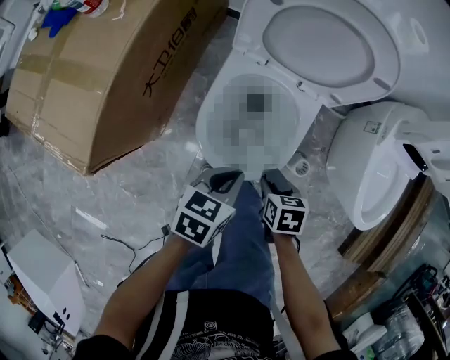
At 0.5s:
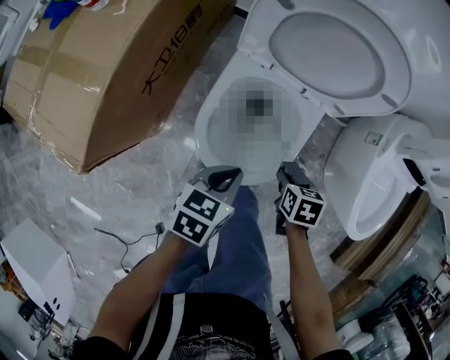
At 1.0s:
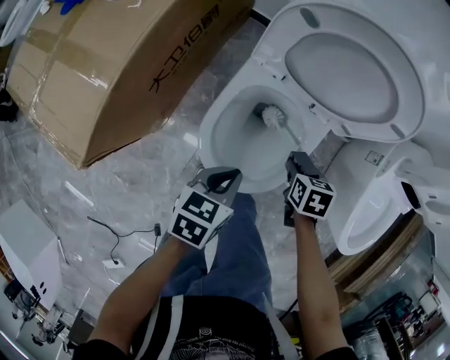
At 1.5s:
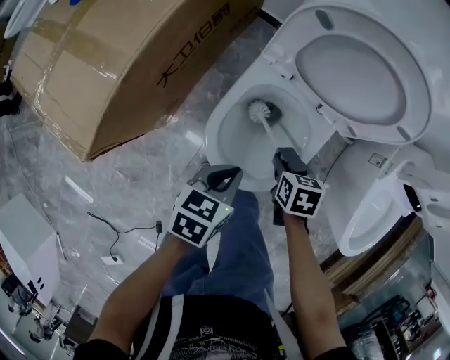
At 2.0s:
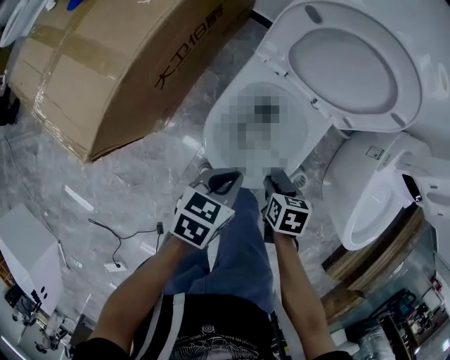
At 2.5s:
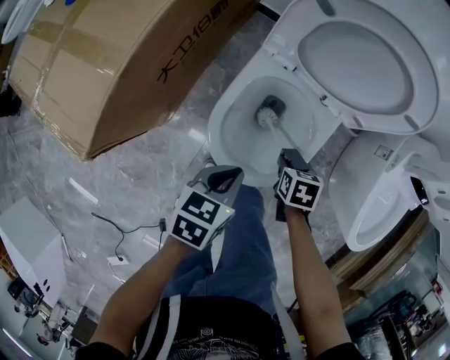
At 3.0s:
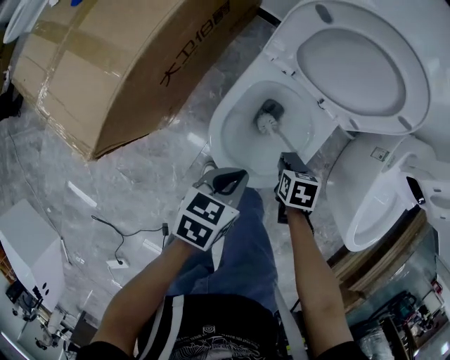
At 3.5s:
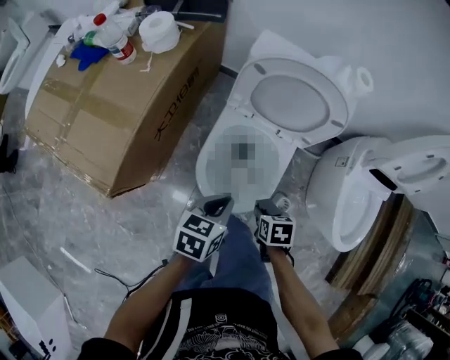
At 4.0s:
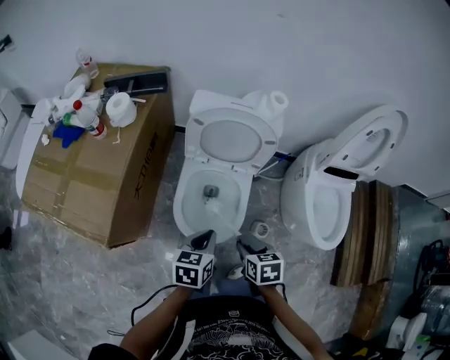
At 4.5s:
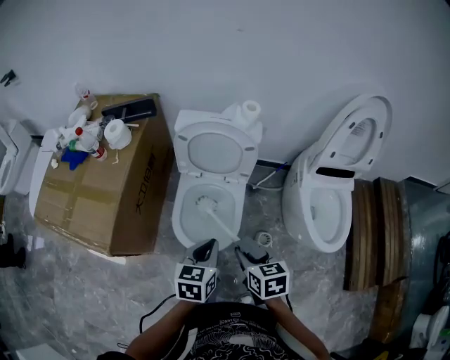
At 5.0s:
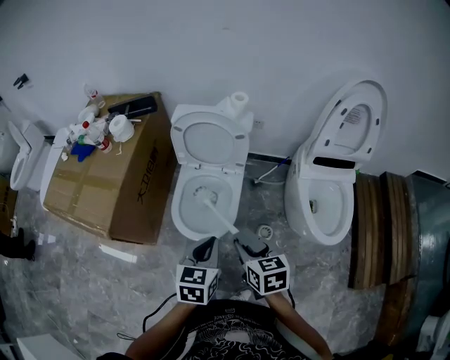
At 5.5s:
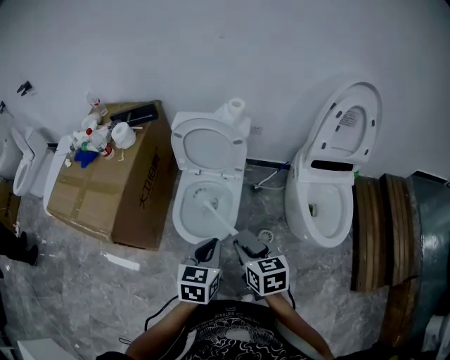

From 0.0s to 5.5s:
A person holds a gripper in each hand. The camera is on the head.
From 0.0s to 2.0s: The right gripper travels forward and back again, about 15 cm each way.
From 2.0s to 3.5s: Both grippers travel together upward, some 5 cm.
From 3.5s to 5.5s: The right gripper goes about 25 cm upward, and points its fingers about 40 degrees further upward; the left gripper is displaced upward, to the right and backward by approximately 25 cm, and changes its angle by approximately 20 degrees.

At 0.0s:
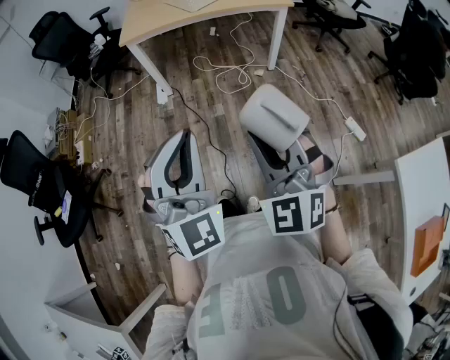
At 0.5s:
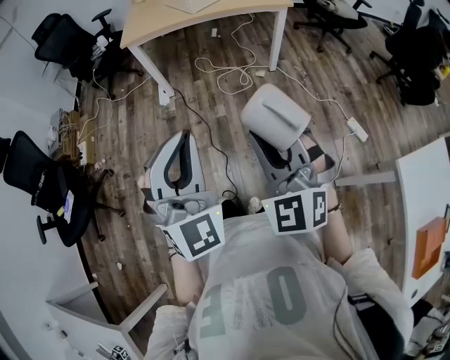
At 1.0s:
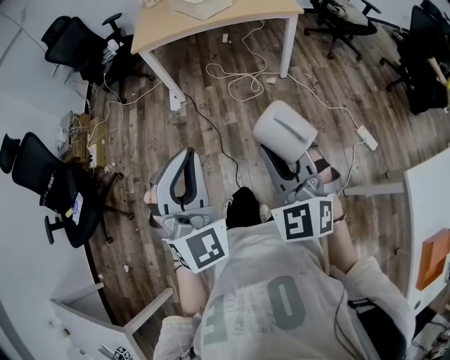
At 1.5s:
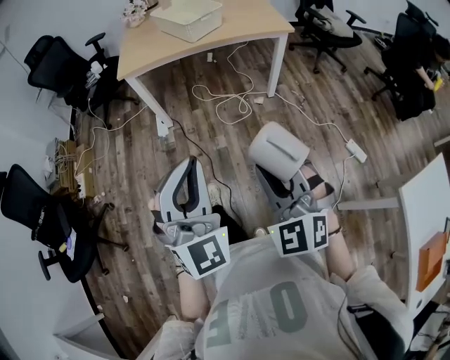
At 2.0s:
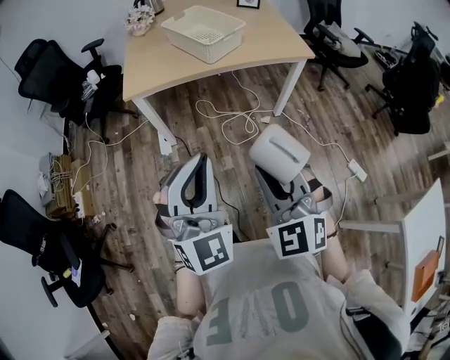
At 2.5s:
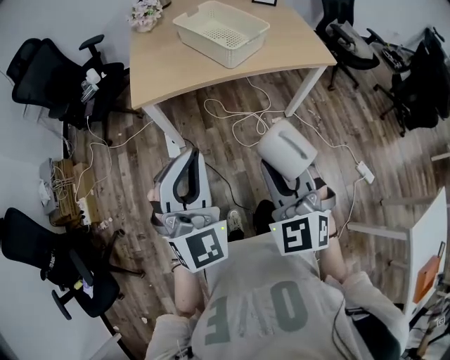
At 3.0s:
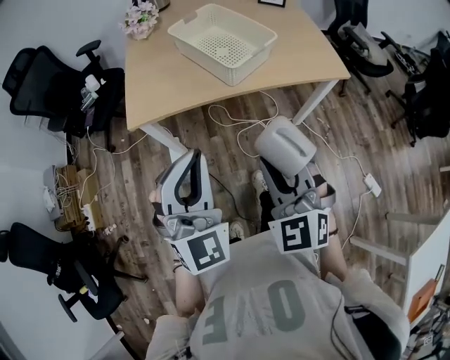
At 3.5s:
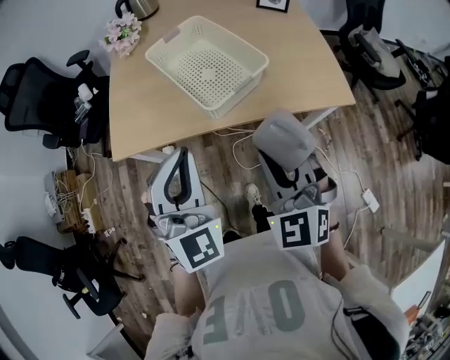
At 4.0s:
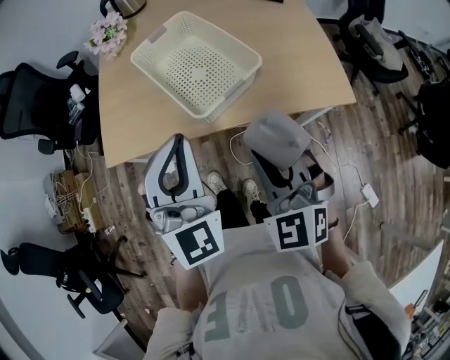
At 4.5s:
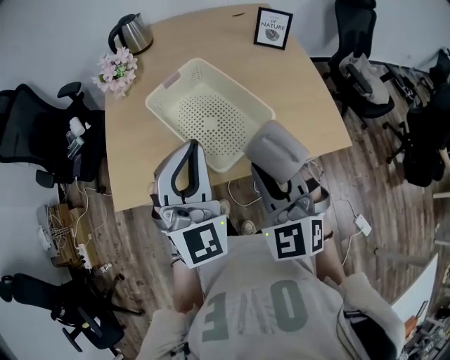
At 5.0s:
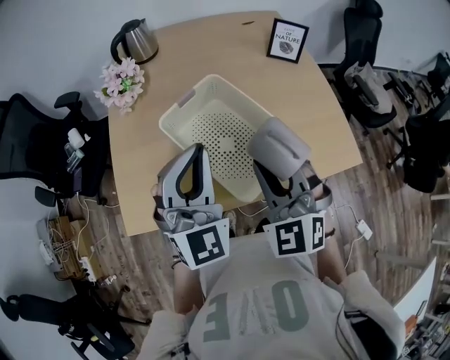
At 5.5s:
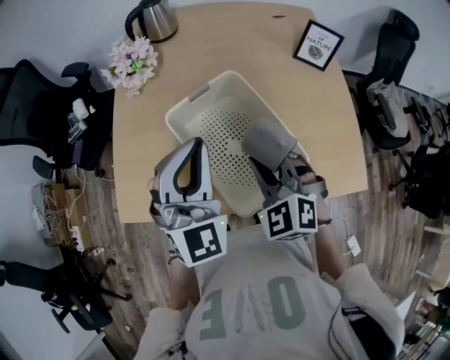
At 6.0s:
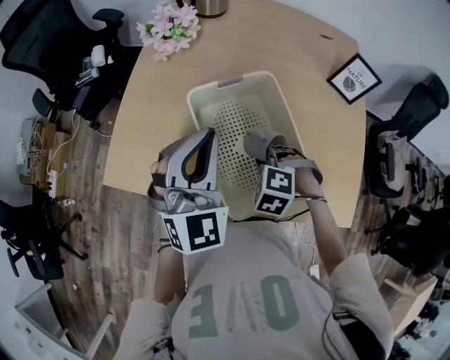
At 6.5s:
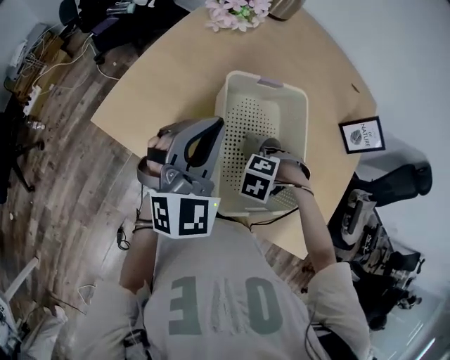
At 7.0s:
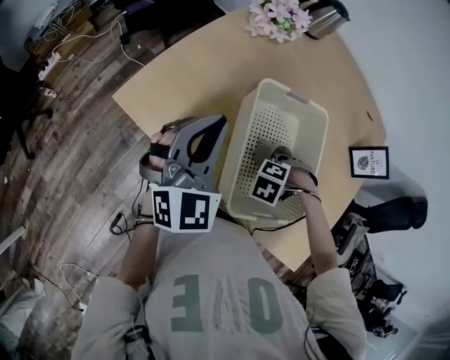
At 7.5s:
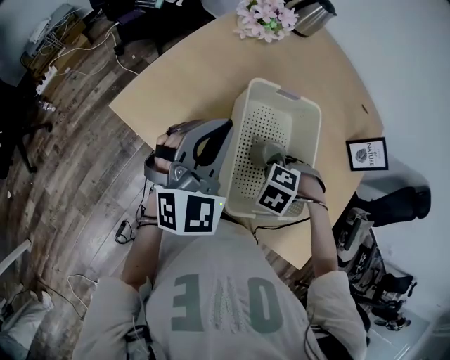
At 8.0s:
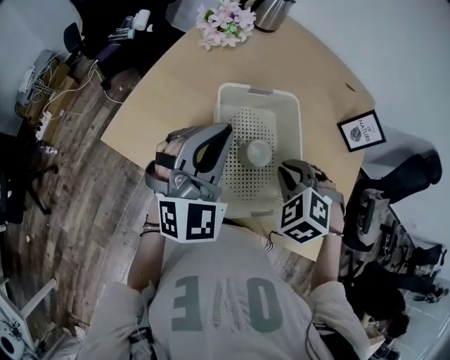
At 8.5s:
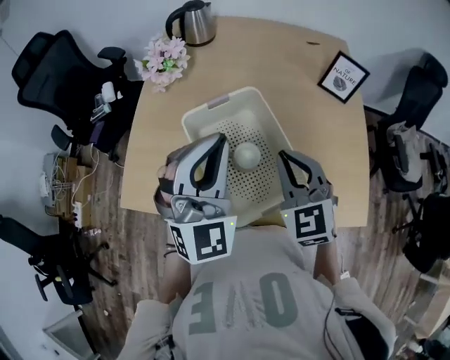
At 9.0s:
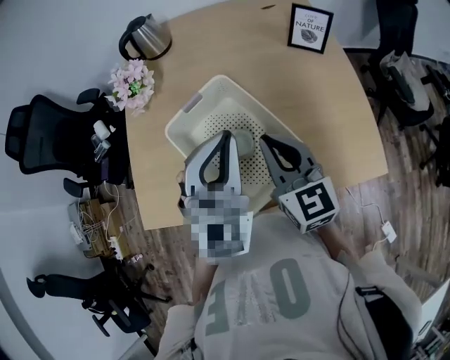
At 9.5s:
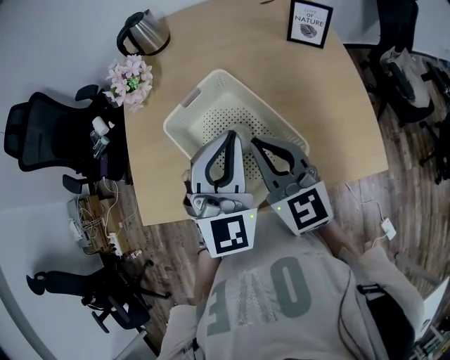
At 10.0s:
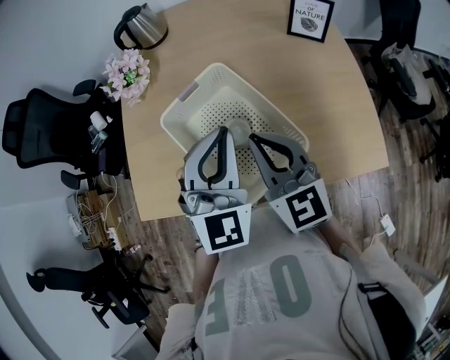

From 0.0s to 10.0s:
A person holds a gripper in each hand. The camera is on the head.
From 0.0s to 2.0s: The grippers both shift forward by about 30 cm.
From 2.0s to 4.0s: The pair of grippers is taken forward, roughly 50 cm.
From 4.0s to 6.0s: The left gripper is displaced forward by roughly 25 cm. The right gripper travels forward and downward by about 35 cm, and tips its fingers downward by approximately 50 degrees.
From 6.0s to 8.0s: The right gripper heads upward, covering approximately 10 cm.
From 8.0s to 10.0s: The right gripper goes some 10 cm upward, and tilts its fingers about 50 degrees upward; the left gripper travels to the right by roughly 15 cm, and rotates approximately 20 degrees.

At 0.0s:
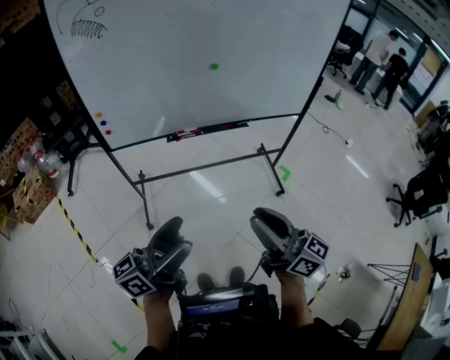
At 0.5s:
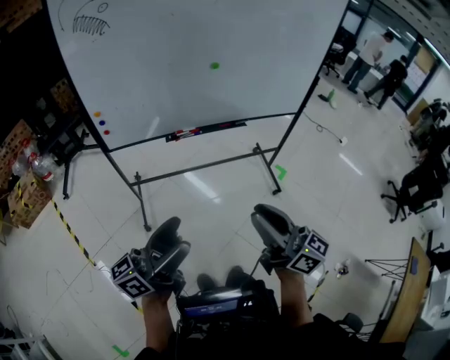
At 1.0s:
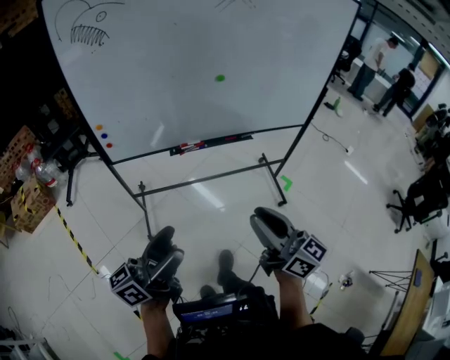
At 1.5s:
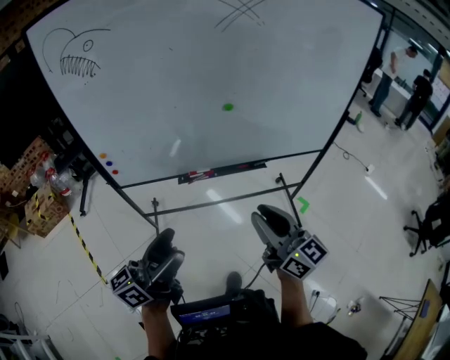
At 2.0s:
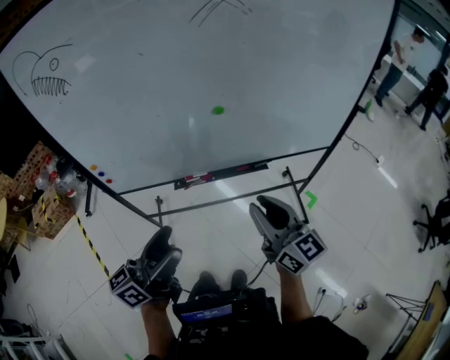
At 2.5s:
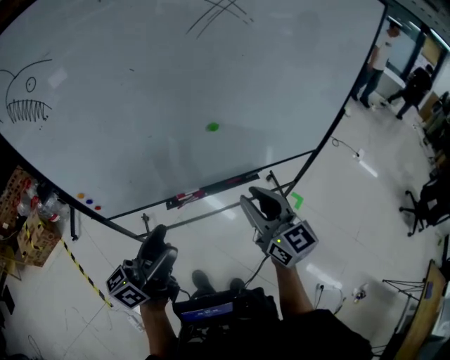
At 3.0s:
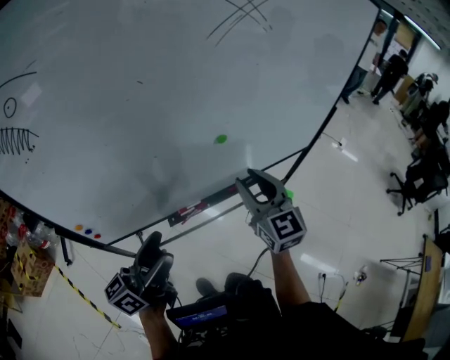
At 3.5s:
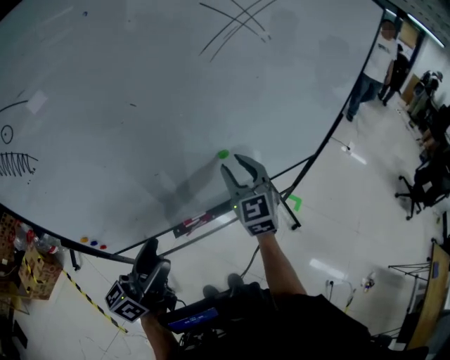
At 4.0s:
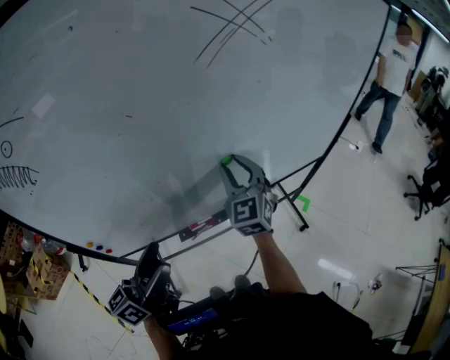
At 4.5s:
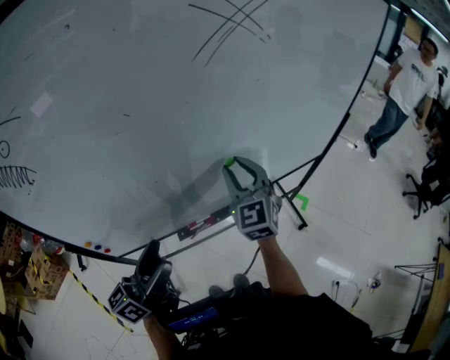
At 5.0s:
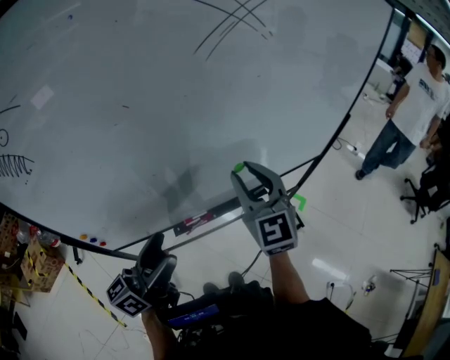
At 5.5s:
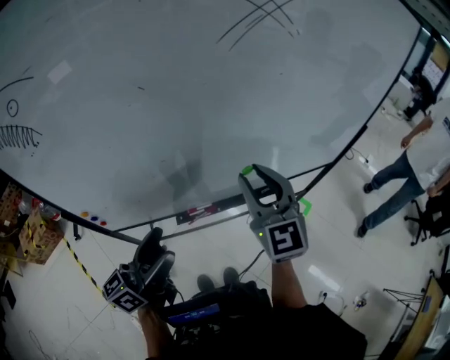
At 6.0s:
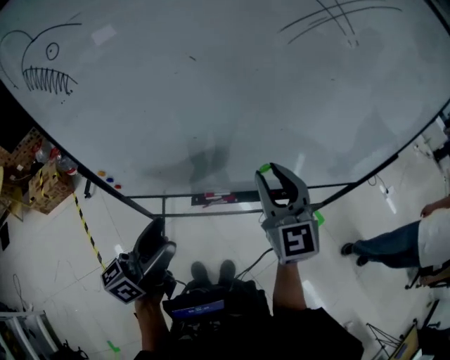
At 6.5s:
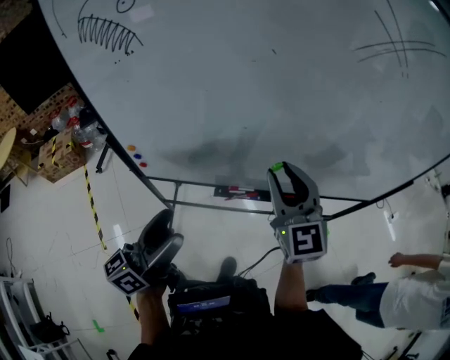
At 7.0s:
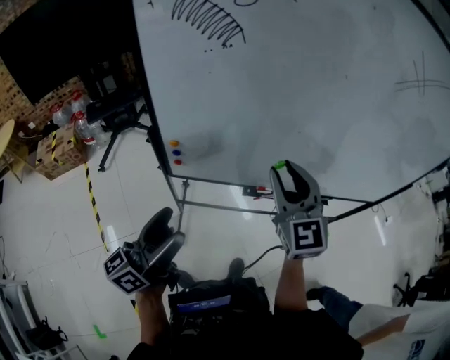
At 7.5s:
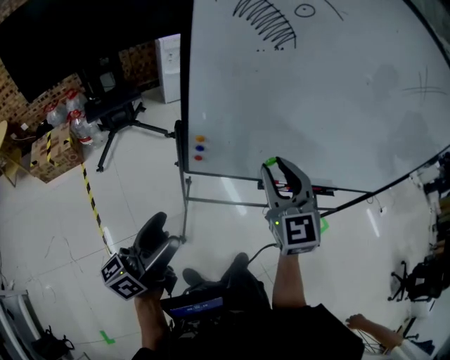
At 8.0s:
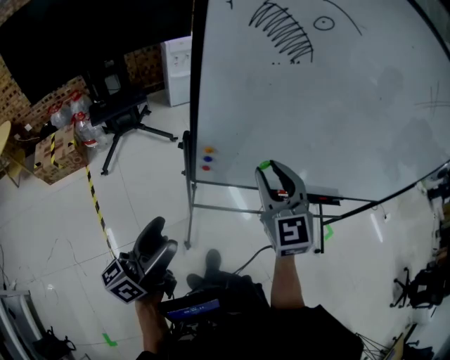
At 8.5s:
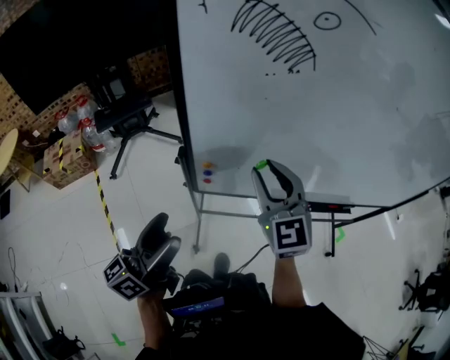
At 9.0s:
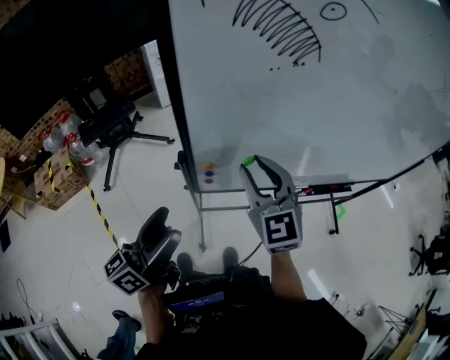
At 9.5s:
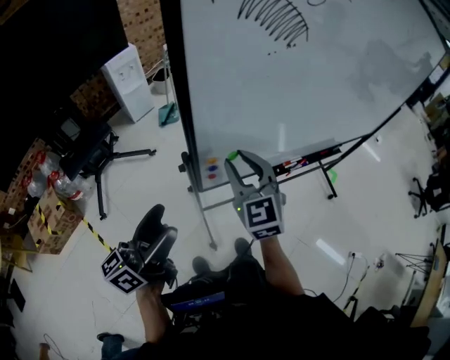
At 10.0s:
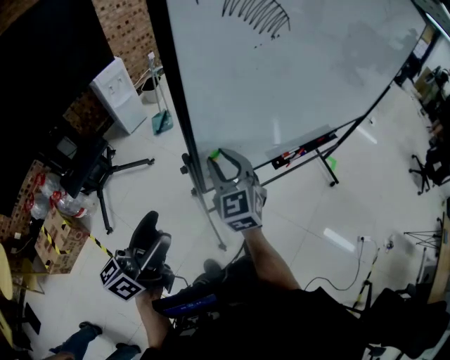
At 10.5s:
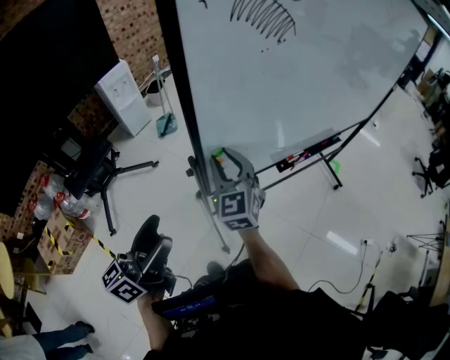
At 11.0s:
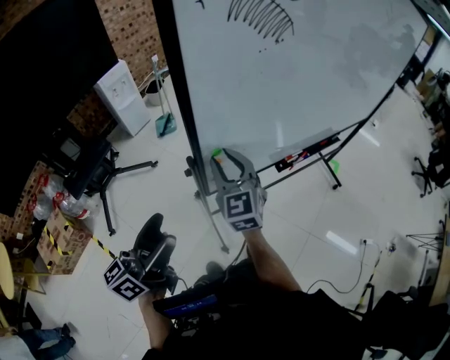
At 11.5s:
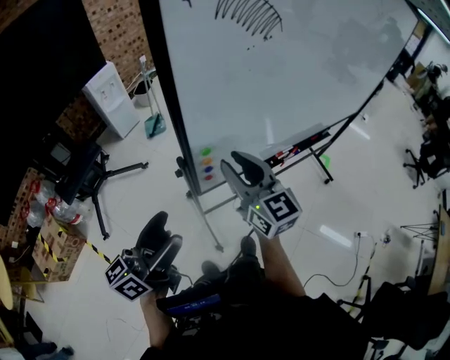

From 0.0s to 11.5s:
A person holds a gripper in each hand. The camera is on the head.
From 0.0s to 2.0s: The grippers both shift forward by roughly 25 cm.
From 2.0s to 4.0s: The grippers both shift forward and to the left by approximately 25 cm. The right gripper swivels some 50 degrees.
From 4.0s to 6.0s: The right gripper is displaced backward by some 10 cm, and rotates some 20 degrees.
From 6.0s to 7.5s: The left gripper moves to the left and backward, approximately 35 cm, while the right gripper moves to the left, approximately 35 cm.
From 7.5s to 9.5s: The right gripper heads to the left, forward and downward, covering approximately 20 cm. The left gripper goes some 20 cm forward and to the left, and swivels roughly 20 degrees.
From 9.5s to 11.5s: The right gripper turns by some 30 degrees.
